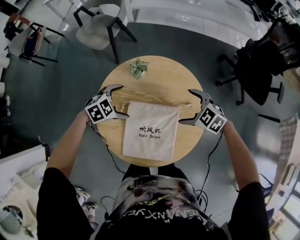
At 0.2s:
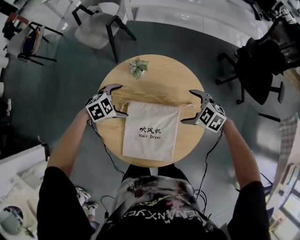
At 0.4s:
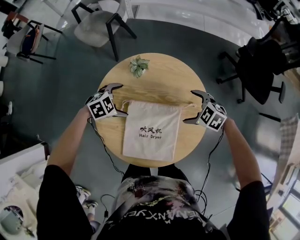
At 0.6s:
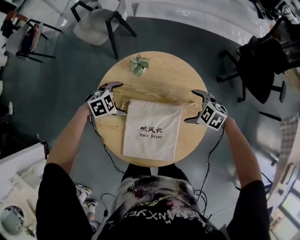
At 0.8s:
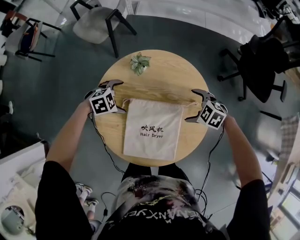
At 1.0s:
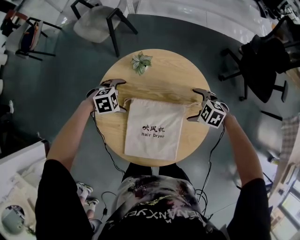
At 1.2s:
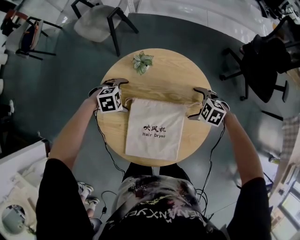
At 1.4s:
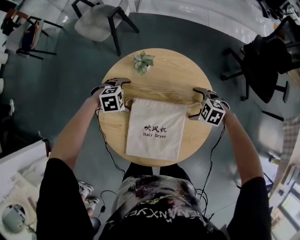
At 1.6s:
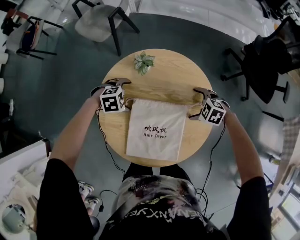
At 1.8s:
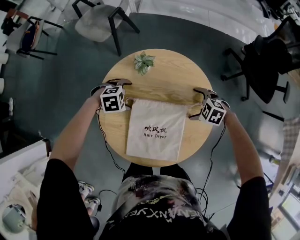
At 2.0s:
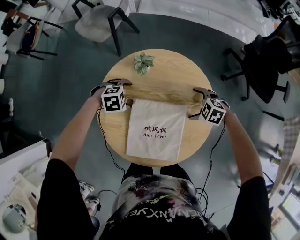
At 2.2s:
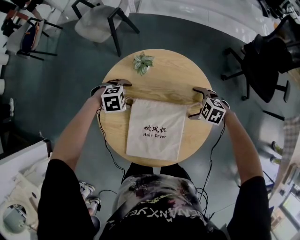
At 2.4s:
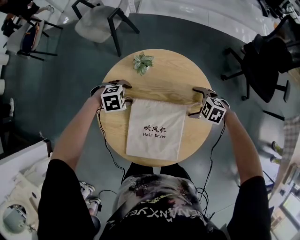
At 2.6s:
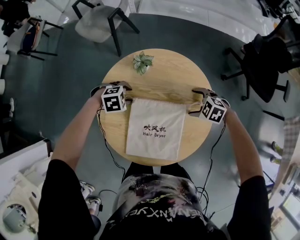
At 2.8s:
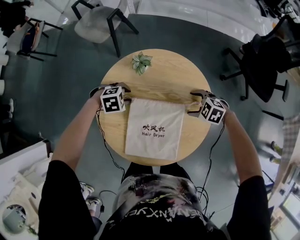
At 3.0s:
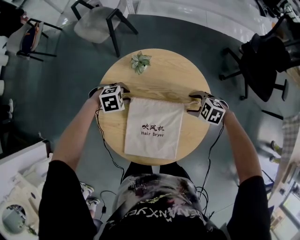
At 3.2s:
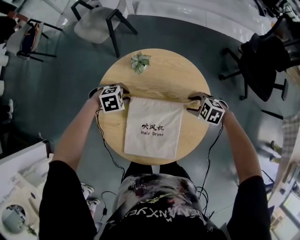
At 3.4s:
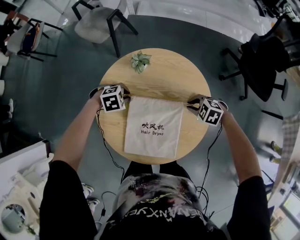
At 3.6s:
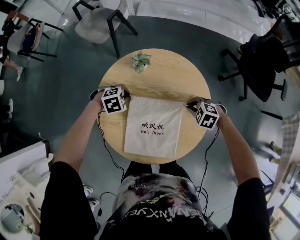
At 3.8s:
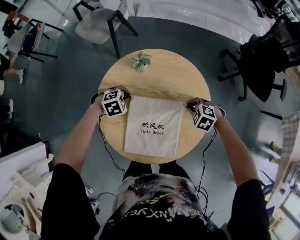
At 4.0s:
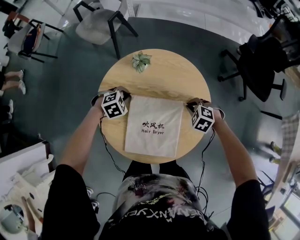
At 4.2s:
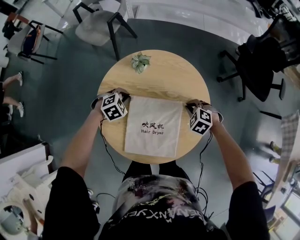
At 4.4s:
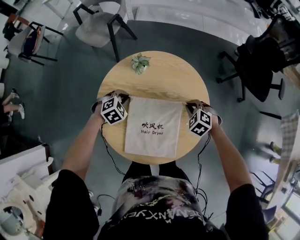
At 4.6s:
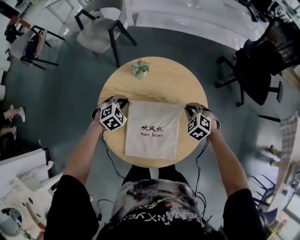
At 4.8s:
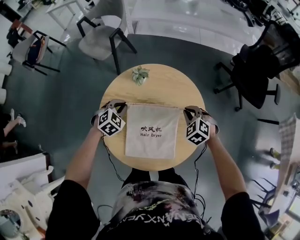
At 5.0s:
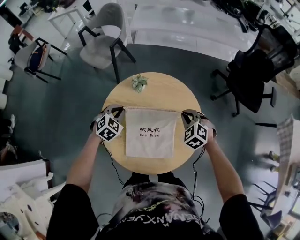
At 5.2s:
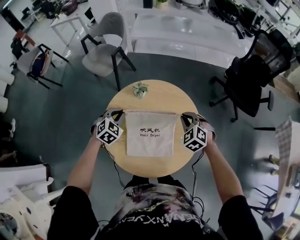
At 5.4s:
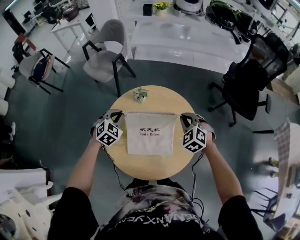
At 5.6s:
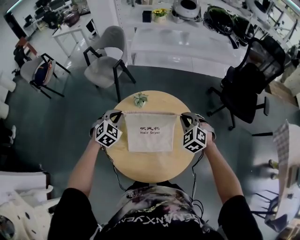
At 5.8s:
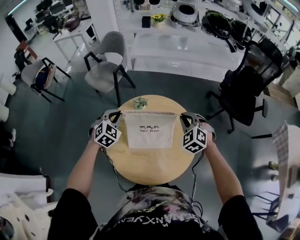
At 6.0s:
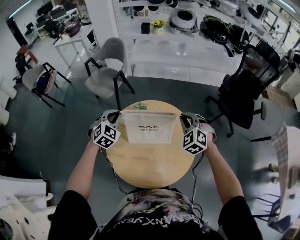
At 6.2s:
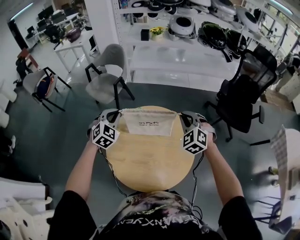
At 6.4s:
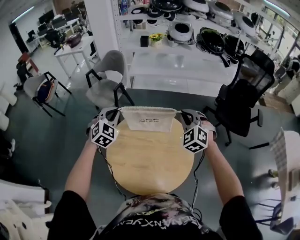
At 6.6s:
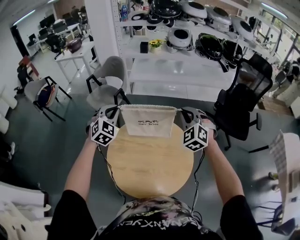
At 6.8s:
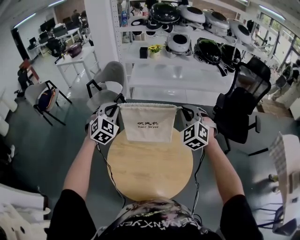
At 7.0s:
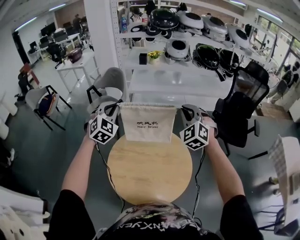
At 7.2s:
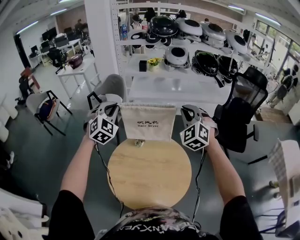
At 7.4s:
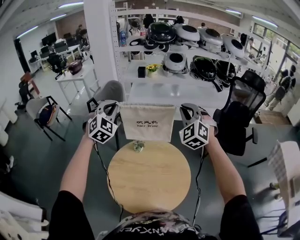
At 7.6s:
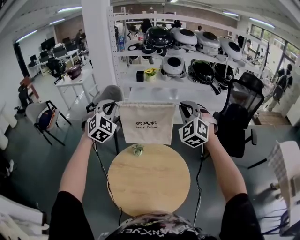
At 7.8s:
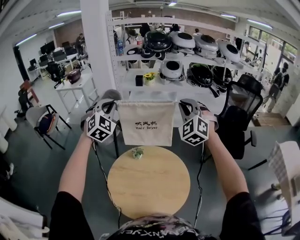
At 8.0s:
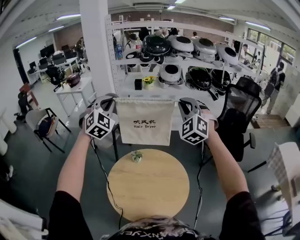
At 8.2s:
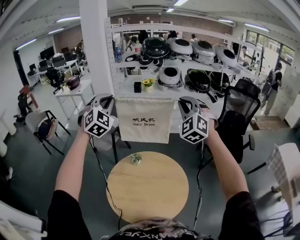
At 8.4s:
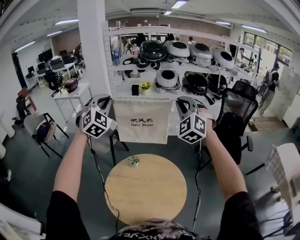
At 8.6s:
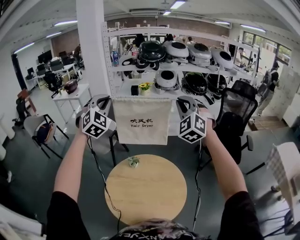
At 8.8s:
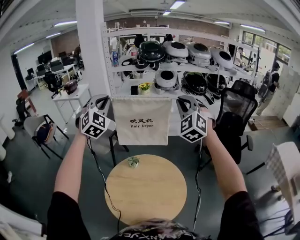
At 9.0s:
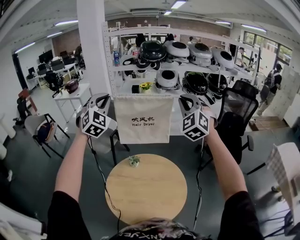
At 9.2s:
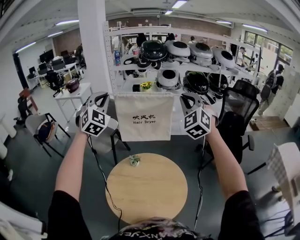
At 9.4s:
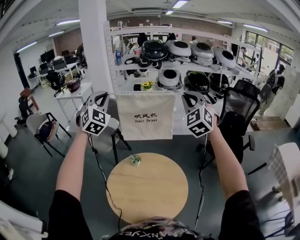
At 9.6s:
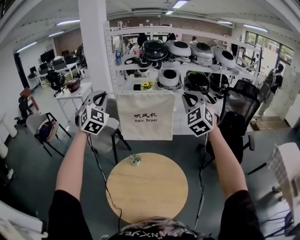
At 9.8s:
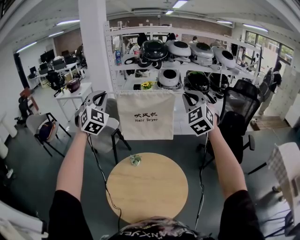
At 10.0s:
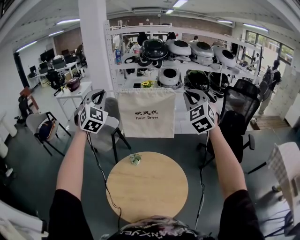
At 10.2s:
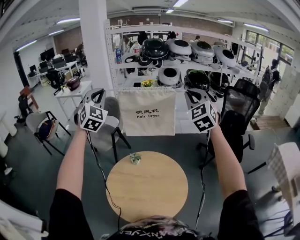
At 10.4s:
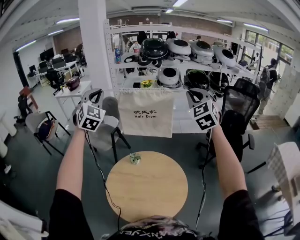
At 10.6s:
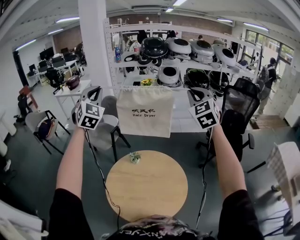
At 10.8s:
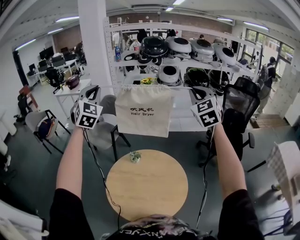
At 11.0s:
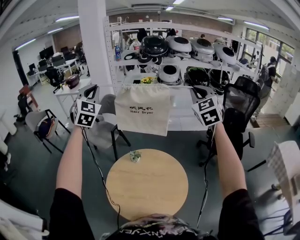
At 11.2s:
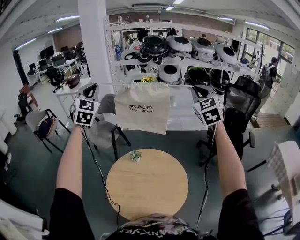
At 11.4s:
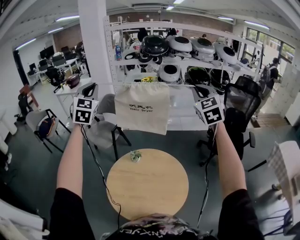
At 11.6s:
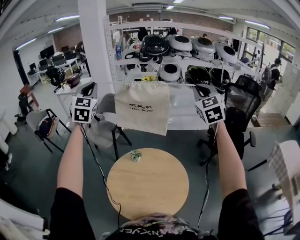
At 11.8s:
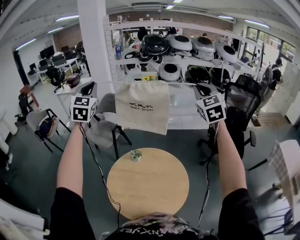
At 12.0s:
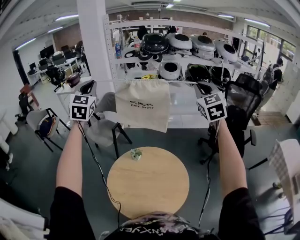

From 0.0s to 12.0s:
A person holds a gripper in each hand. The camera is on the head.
From 0.0s to 1.6s: Both grippers move downward, roughly 10 cm.
From 1.6s to 3.0s: The left gripper closes up. Meanwhile the right gripper closes.
From 3.0s to 4.4s: The left gripper swivels approximately 20 degrees, while the right gripper rotates approximately 30 degrees, and closes.
From 4.4s to 6.0s: The two grippers go about 25 cm upward. The right gripper points its fingers approximately 30 degrees further upward; the left gripper tilts its fingers roughly 30 degrees upward.
From 6.0s to 7.6s: Both grippers travel together upward, roughly 30 cm. The left gripper rotates some 30 degrees, while the right gripper changes its angle by roughly 30 degrees.
From 7.6s to 9.0s: Both grippers travel together upward, some 10 cm.
From 9.0s to 10.4s: The grippers move only a little.
From 10.4s to 12.0s: The grippers move only a little.

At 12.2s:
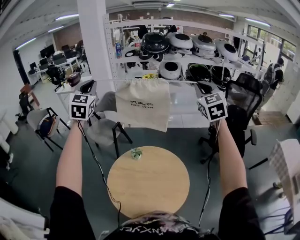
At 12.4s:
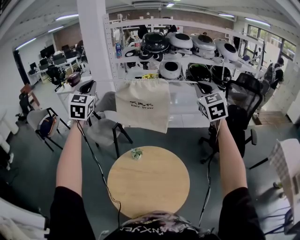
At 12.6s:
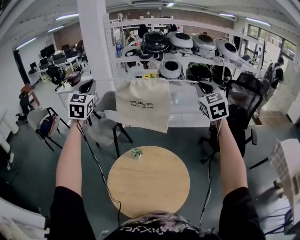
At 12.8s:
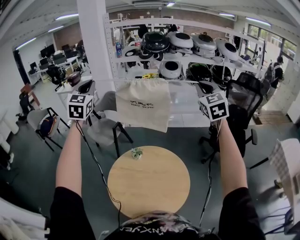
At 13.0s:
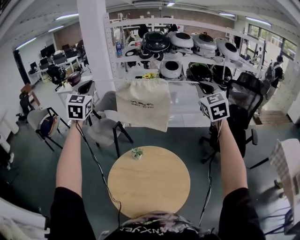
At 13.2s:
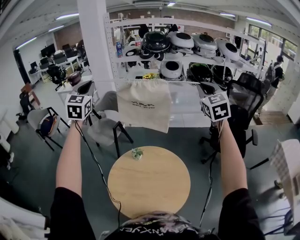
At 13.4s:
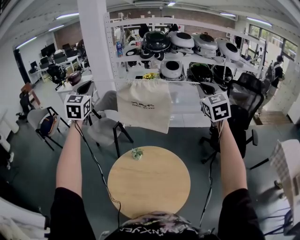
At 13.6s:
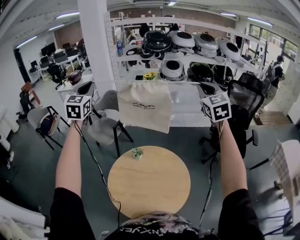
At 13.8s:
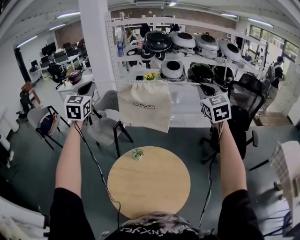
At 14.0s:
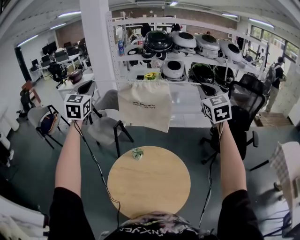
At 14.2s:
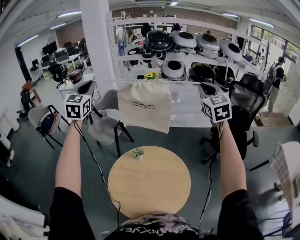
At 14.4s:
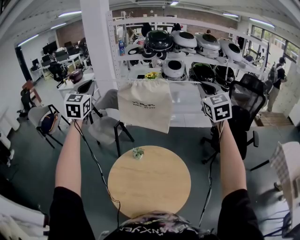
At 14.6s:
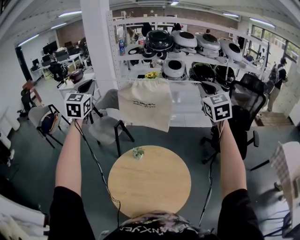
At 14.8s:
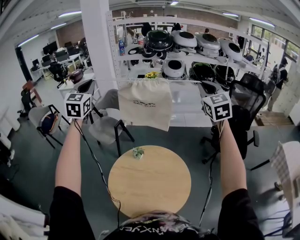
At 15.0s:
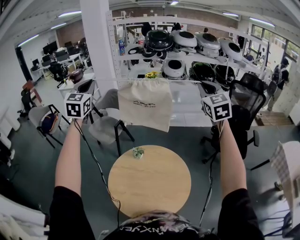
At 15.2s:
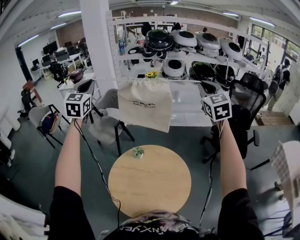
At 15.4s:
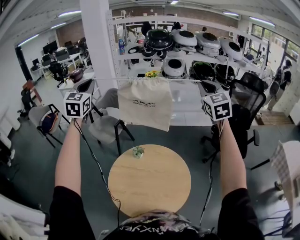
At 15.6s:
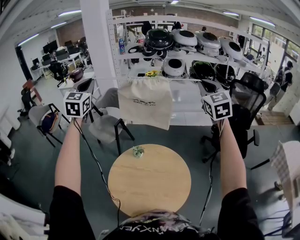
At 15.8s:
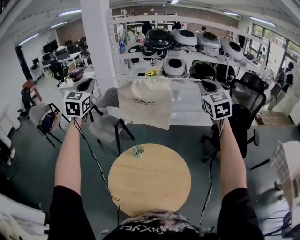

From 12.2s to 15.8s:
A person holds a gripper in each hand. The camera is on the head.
From 12.2s to 14.0s: There are only small adjustments of the grippers.
From 14.0s to 15.8s: Neither gripper changes place.

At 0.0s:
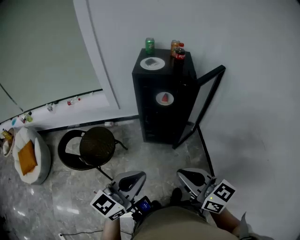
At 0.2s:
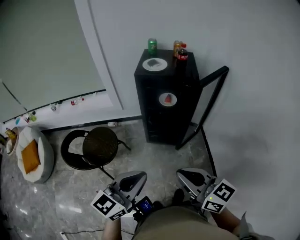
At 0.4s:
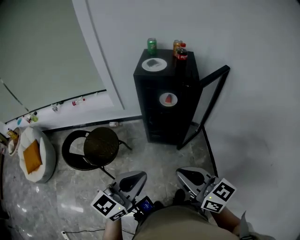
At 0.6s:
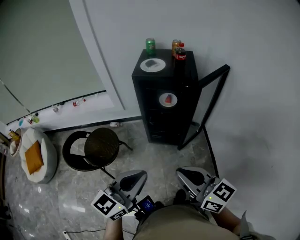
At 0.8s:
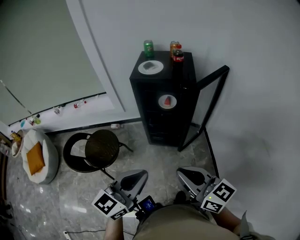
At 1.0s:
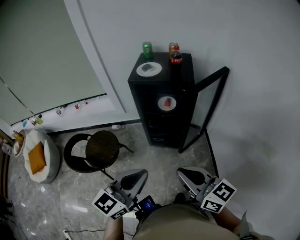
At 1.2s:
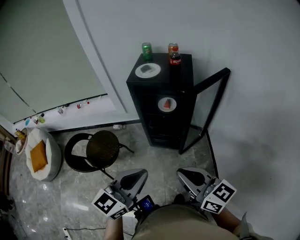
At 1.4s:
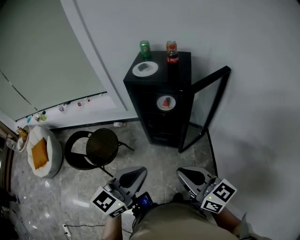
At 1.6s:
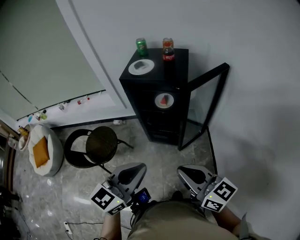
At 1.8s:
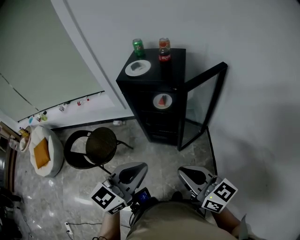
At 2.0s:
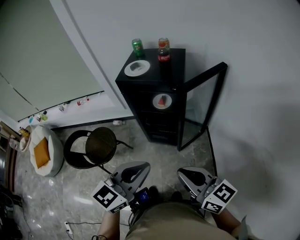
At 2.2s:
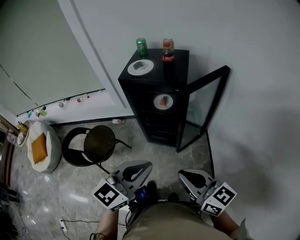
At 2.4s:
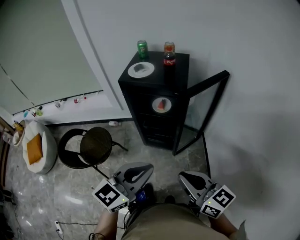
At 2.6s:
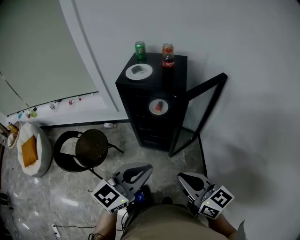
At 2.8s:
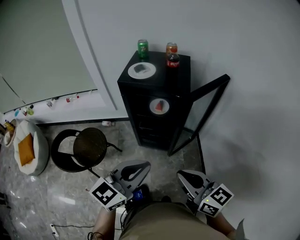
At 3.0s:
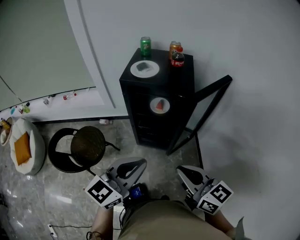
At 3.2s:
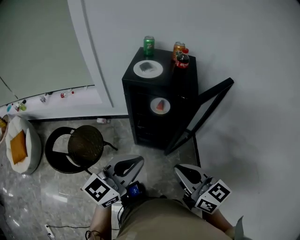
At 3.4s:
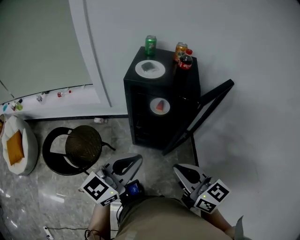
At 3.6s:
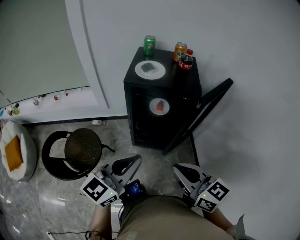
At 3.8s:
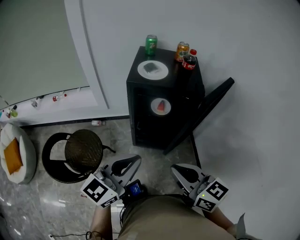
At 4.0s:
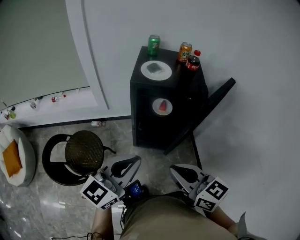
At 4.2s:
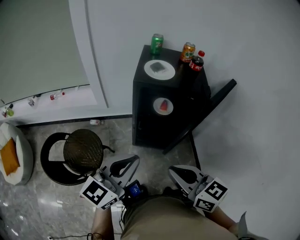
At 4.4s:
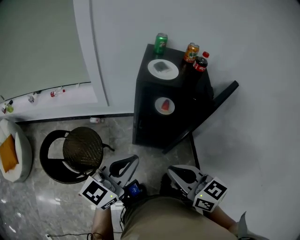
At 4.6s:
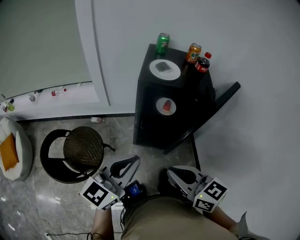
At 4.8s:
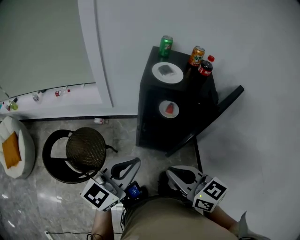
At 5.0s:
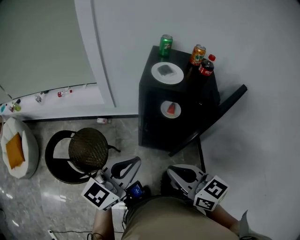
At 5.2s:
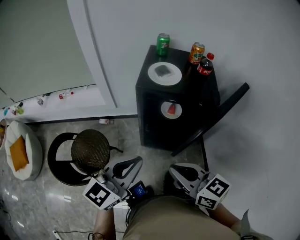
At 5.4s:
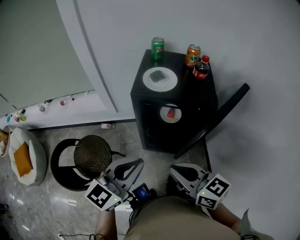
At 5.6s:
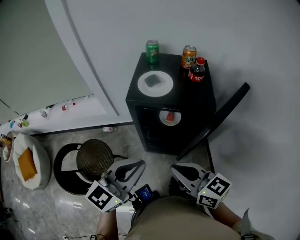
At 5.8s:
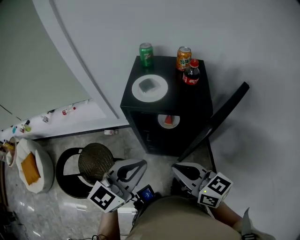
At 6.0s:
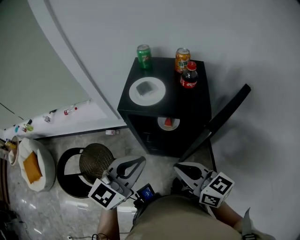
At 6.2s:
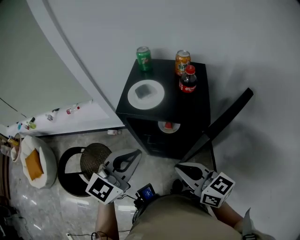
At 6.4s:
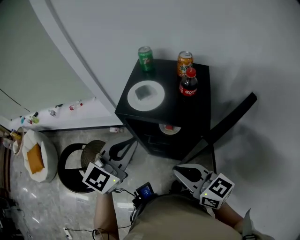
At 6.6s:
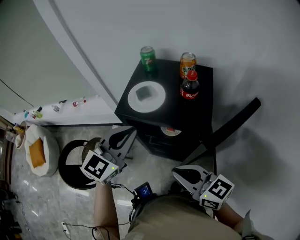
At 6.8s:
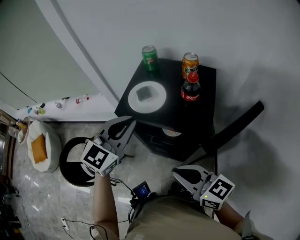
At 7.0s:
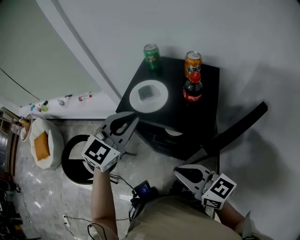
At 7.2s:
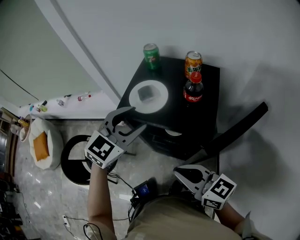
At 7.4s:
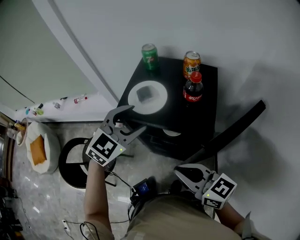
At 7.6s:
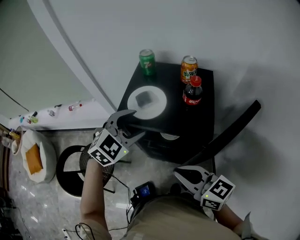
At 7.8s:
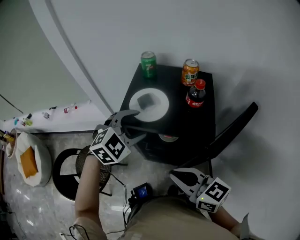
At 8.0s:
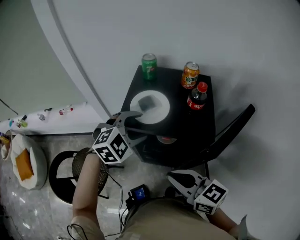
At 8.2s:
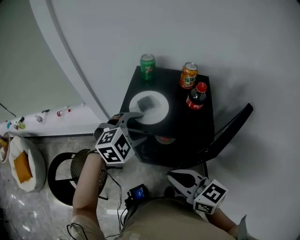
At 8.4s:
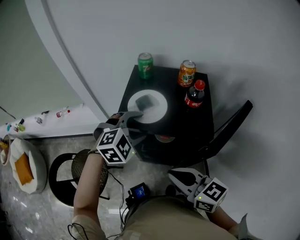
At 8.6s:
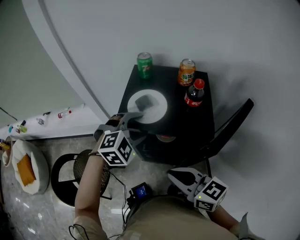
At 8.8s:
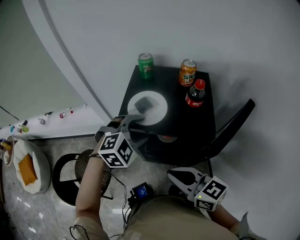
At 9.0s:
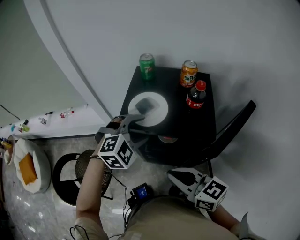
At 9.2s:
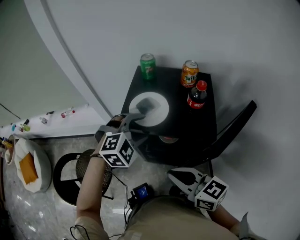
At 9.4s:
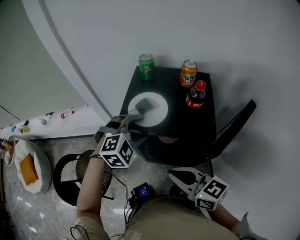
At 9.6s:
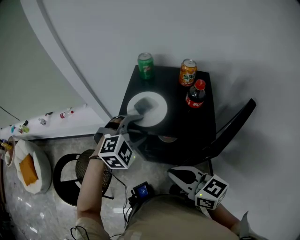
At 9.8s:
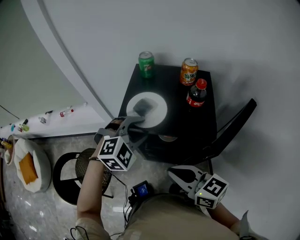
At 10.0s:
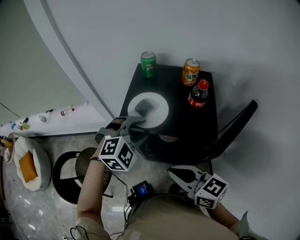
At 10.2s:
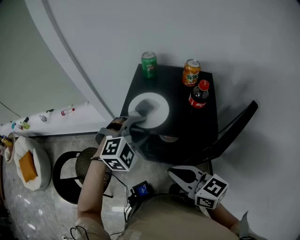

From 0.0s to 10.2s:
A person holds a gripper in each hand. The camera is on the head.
From 0.0s to 1.4s: The two grippers go some 15 cm to the right and forward.
From 1.4s to 3.0s: The two grippers go approximately 10 cm forward.
From 3.0s to 4.4s: Both grippers travel together to the left, some 15 cm.
From 4.4s to 5.8s: The left gripper moves to the right and forward, about 15 cm. Meanwhile the right gripper is displaced forward and to the right by some 15 cm.
From 5.8s to 7.2s: The right gripper is displaced to the right and forward by some 10 cm; the left gripper travels forward by roughly 20 cm, rotates some 30 degrees, and opens its fingers.
From 7.2s to 8.8s: The right gripper moves to the left, about 5 cm. Meanwhile the left gripper is displaced downward by roughly 10 cm, and rotates about 40 degrees.
From 8.8s to 10.2s: The two grippers keep their place.
